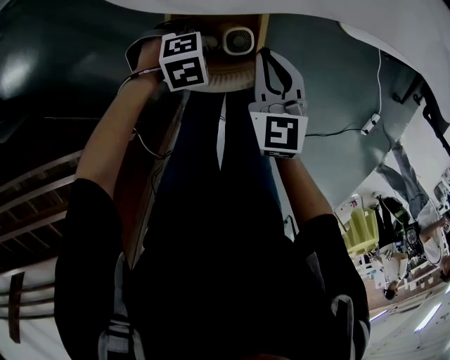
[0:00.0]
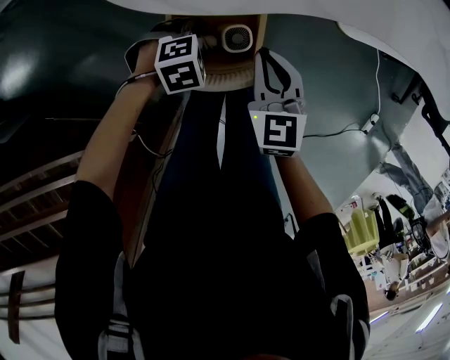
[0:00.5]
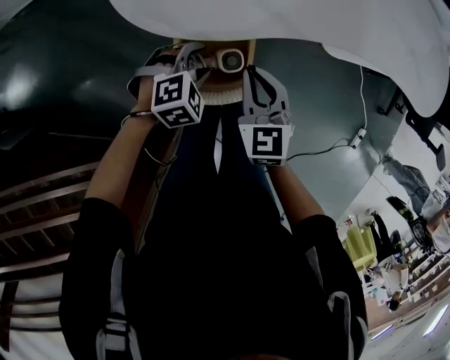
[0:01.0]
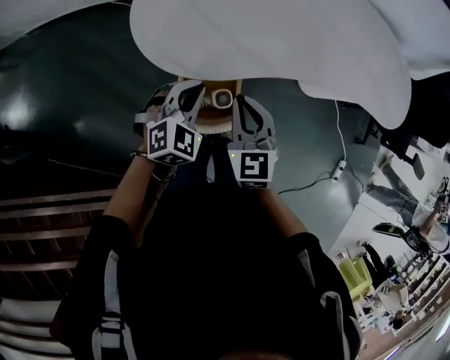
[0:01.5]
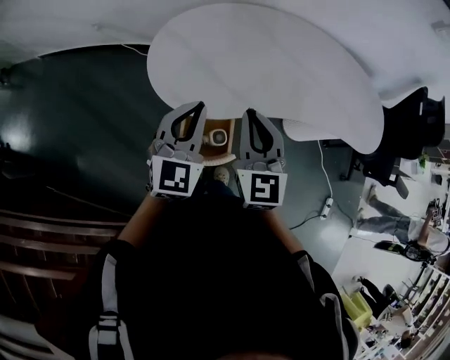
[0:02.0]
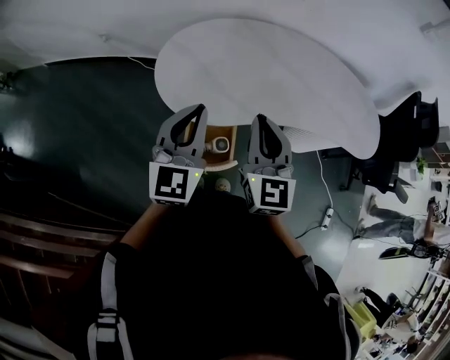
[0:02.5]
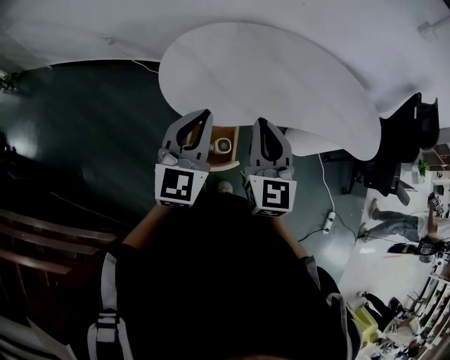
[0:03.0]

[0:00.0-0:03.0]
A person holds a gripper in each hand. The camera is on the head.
0:00.0 to 0:01.5: The left gripper goes about 25 cm upward, tips its fingers upward by approximately 40 degrees, and closes up, while the right gripper heads upward, covering roughly 15 cm.
0:01.5 to 0:03.0: The two grippers go approximately 20 cm upward. The left gripper angles its fingers upward, by roughly 30 degrees. Meanwhile the right gripper turns by approximately 20 degrees.

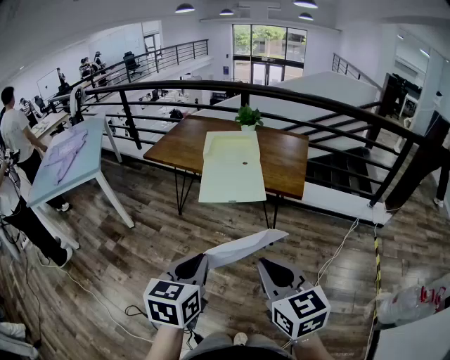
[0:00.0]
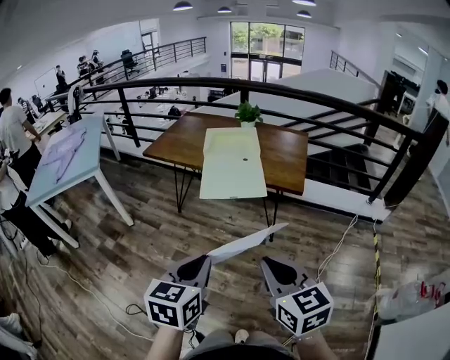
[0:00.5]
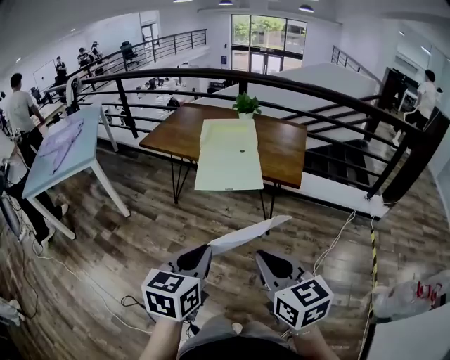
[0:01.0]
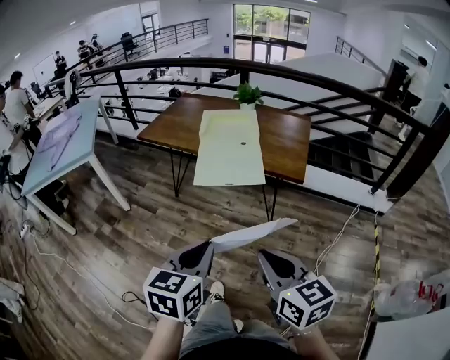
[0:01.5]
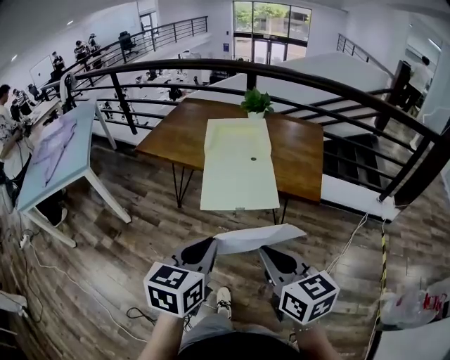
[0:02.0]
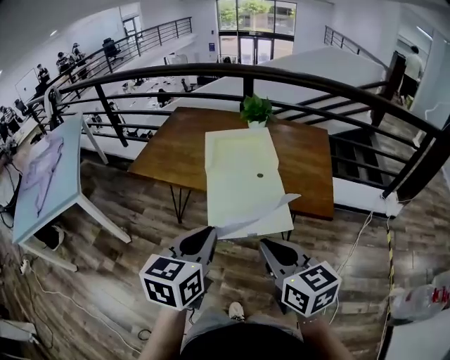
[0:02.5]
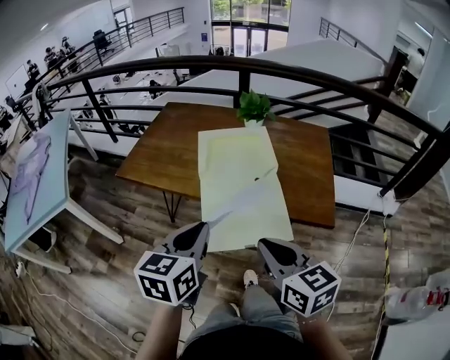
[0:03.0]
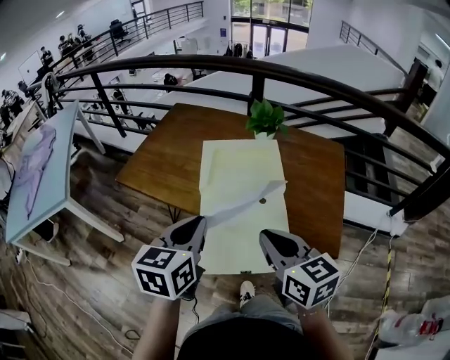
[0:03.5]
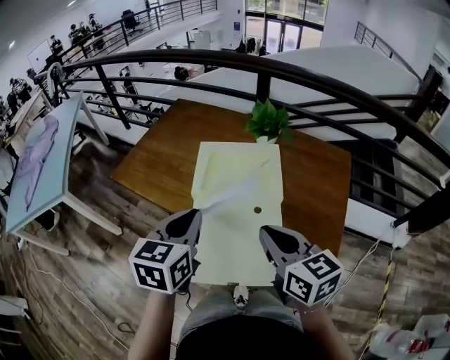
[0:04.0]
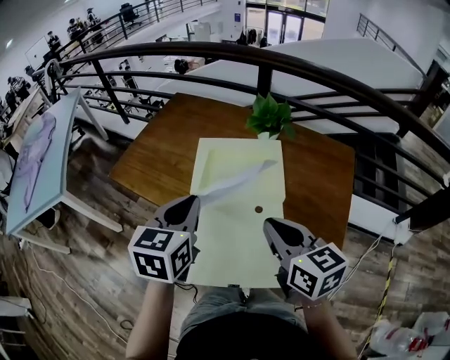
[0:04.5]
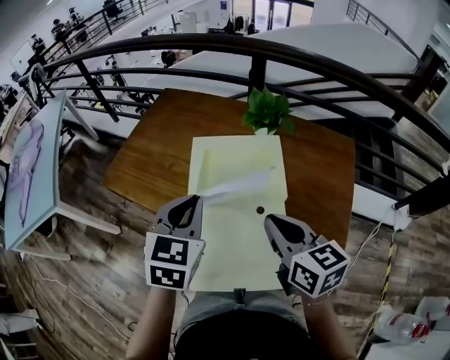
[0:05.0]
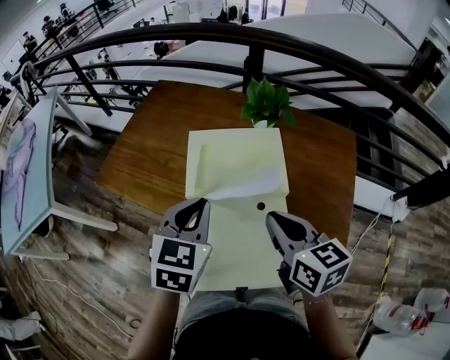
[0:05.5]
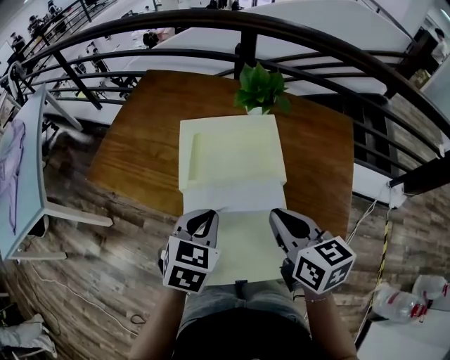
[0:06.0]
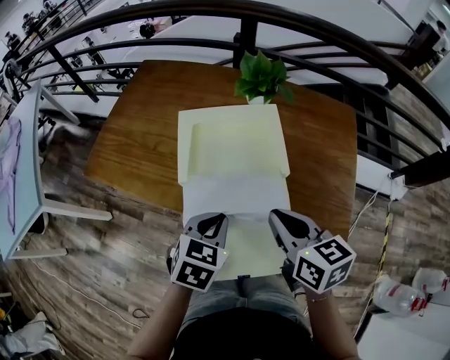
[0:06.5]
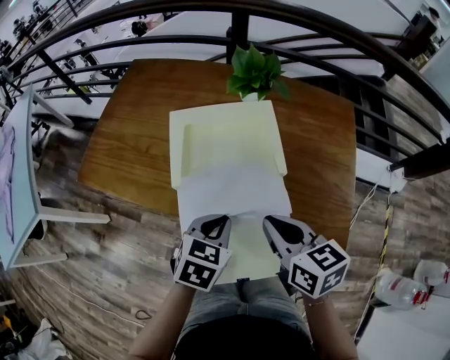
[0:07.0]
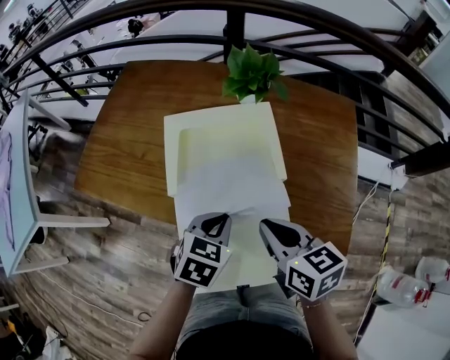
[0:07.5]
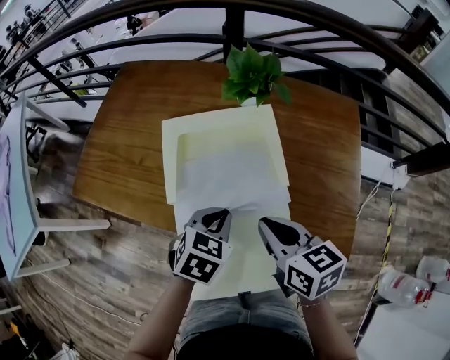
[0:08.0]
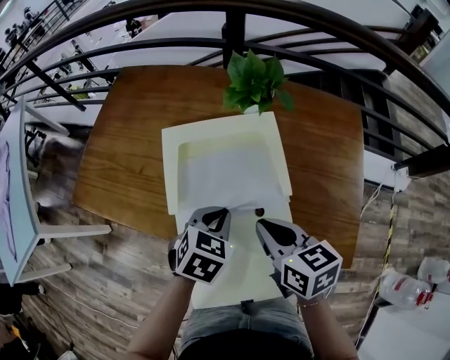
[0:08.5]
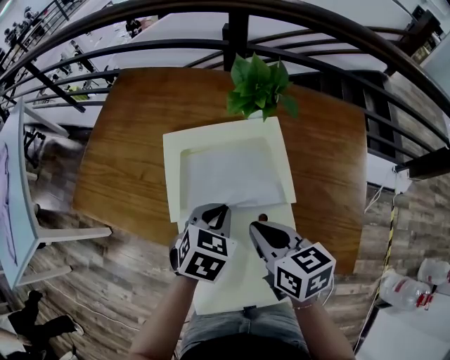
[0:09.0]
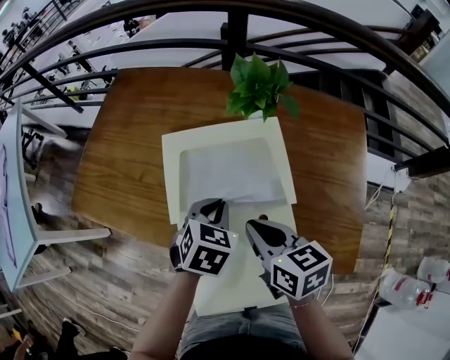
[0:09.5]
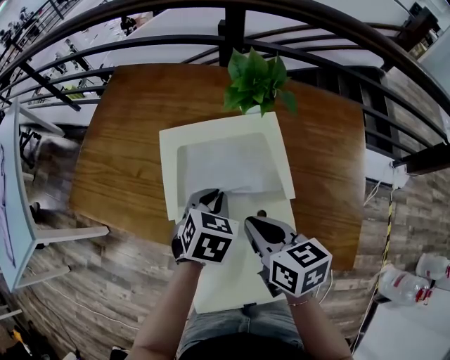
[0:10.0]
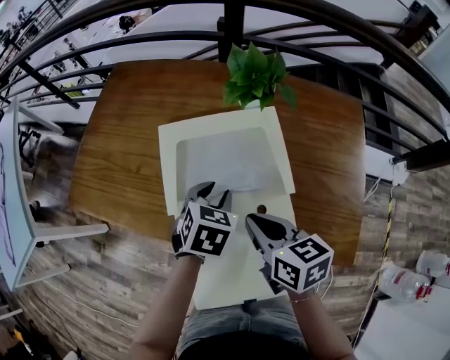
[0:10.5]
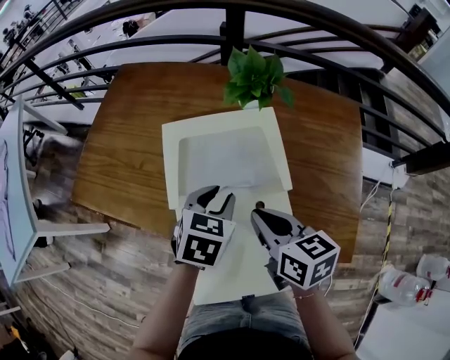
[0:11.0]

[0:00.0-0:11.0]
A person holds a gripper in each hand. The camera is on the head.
0:00.0 to 0:02.0: The two grippers go some 15 cm forward.
0:02.0 to 0:03.5: Both grippers travel together forward, some 30 cm.
0:03.5 to 0:05.5: Both grippers move forward, about 10 cm. The left gripper turns by roughly 20 degrees.
0:05.5 to 0:07.5: The right gripper travels downward by roughly 5 cm. Meanwhile the left gripper is displaced downward and to the right by about 15 cm, and rotates approximately 30 degrees.
0:07.5 to 0:09.0: The two grippers go about 5 cm forward.
0:09.0 to 0:11.0: The left gripper opens.

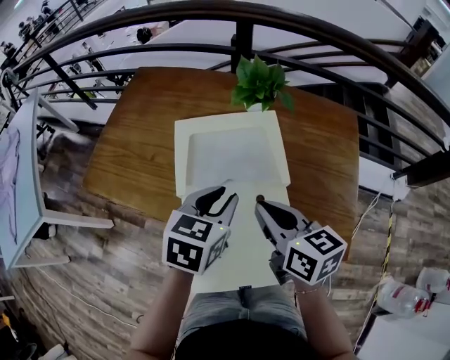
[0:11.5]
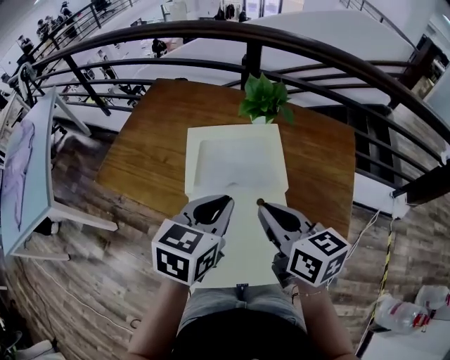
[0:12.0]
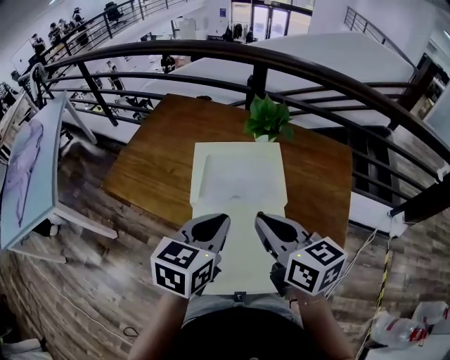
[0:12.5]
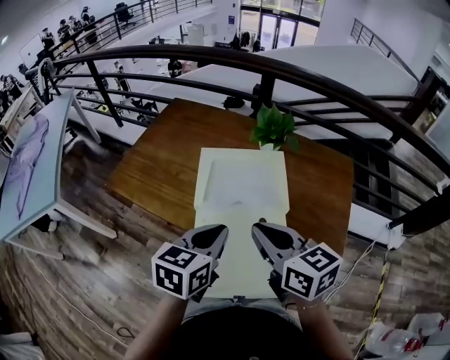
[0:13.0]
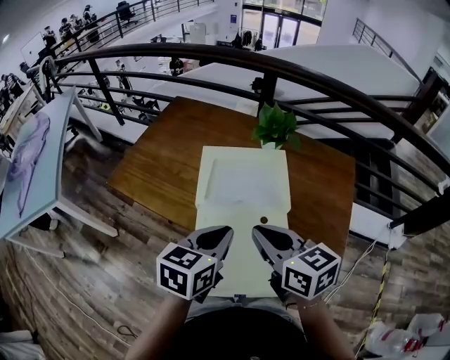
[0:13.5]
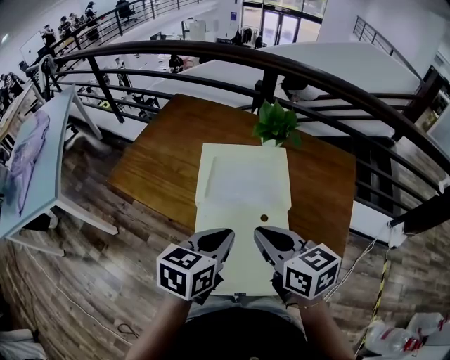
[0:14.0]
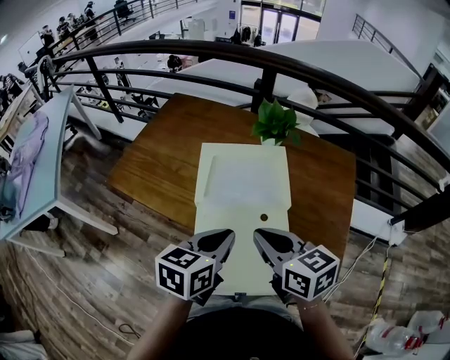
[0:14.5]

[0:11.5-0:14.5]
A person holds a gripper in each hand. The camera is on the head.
0:11.5 to 0:13.0: The left gripper heads backward and upward, covering roughly 10 cm, and closes its fingers, while the right gripper travels upward and backward by some 10 cm.
0:13.0 to 0:14.5: The grippers stay close to where they were, moving slightly.

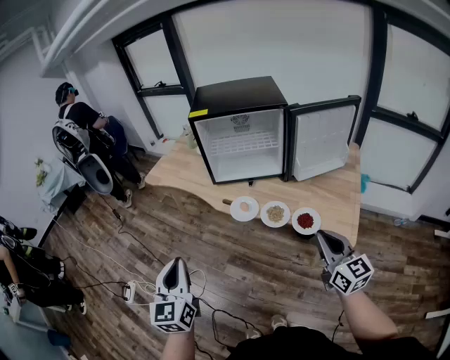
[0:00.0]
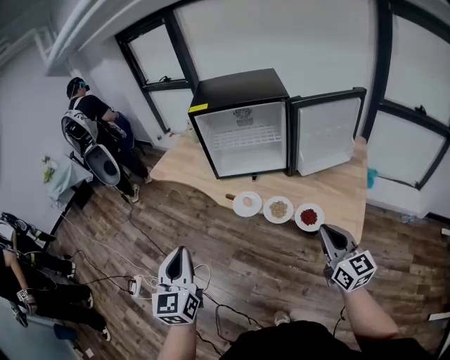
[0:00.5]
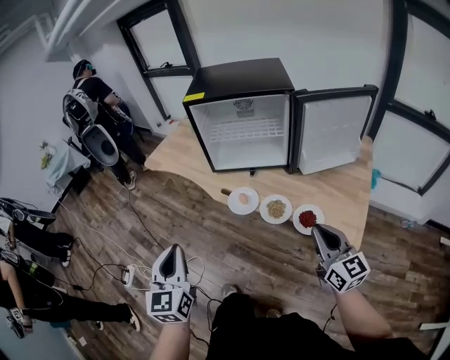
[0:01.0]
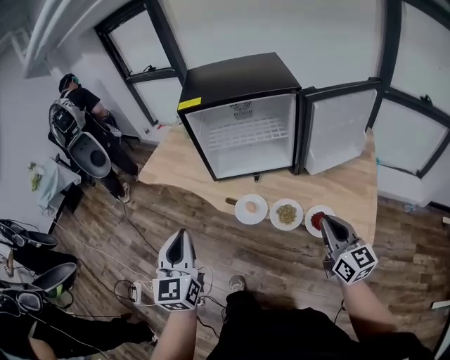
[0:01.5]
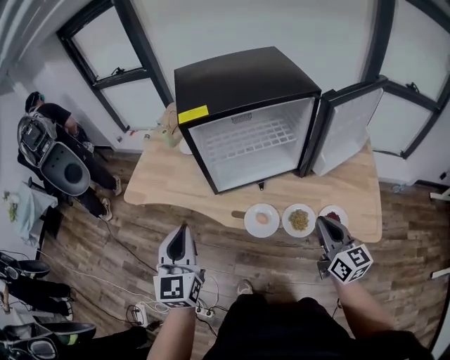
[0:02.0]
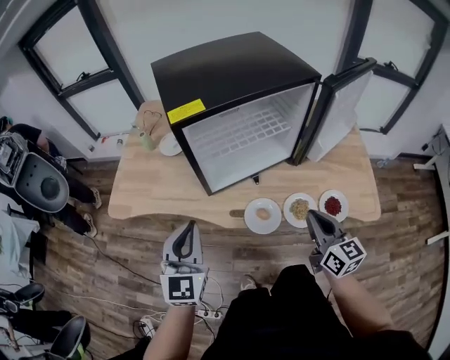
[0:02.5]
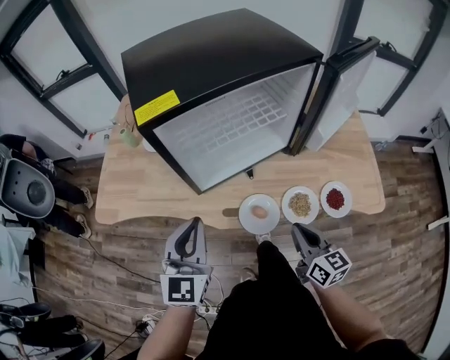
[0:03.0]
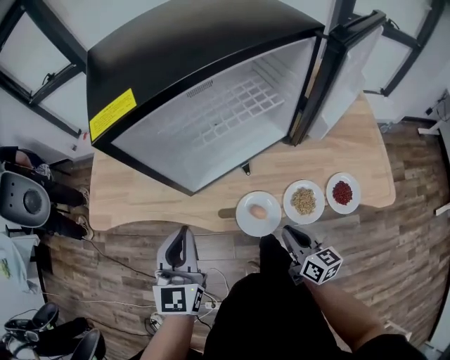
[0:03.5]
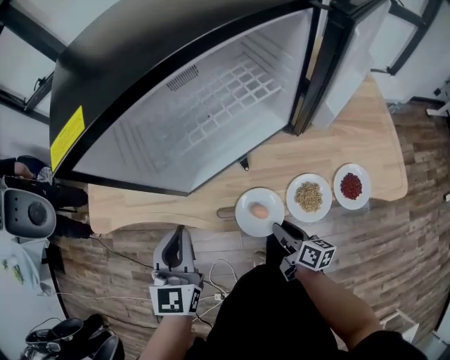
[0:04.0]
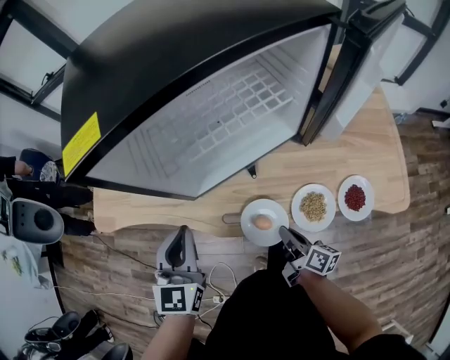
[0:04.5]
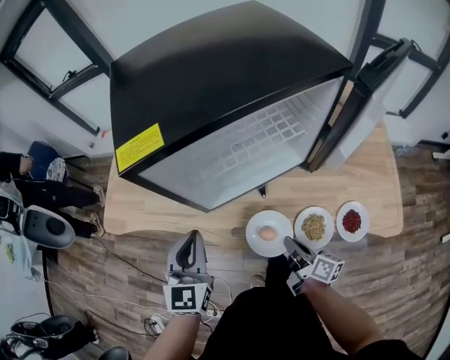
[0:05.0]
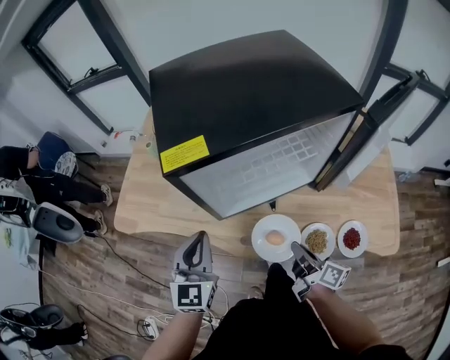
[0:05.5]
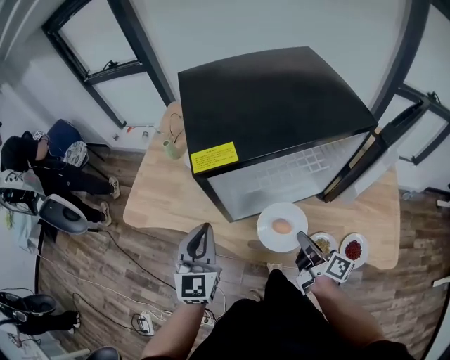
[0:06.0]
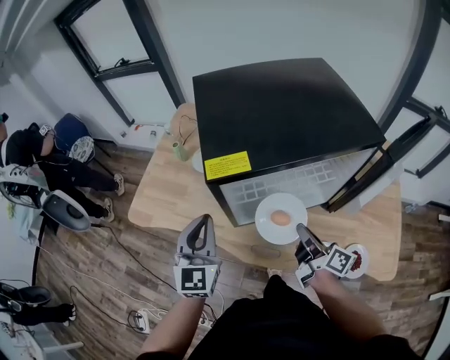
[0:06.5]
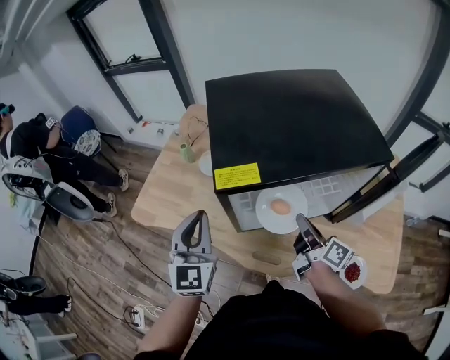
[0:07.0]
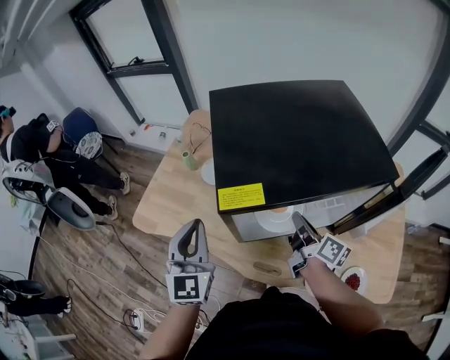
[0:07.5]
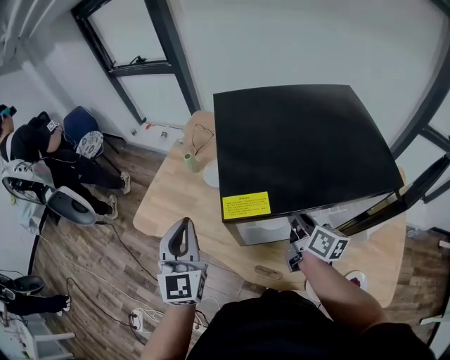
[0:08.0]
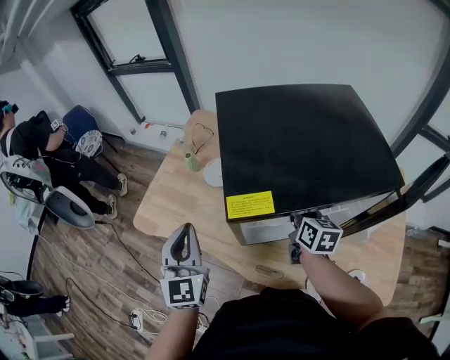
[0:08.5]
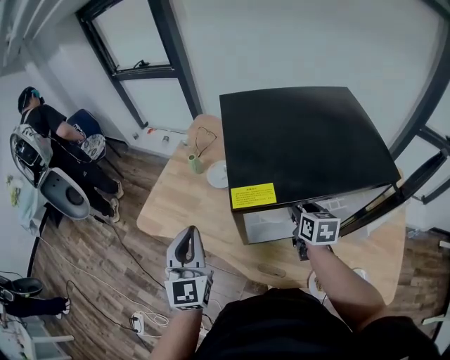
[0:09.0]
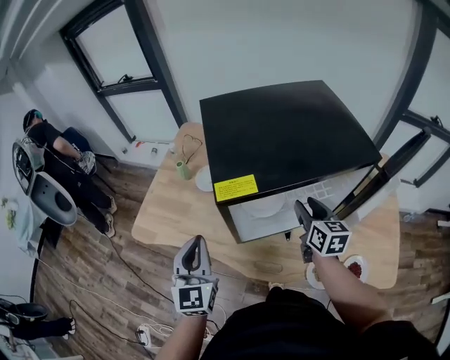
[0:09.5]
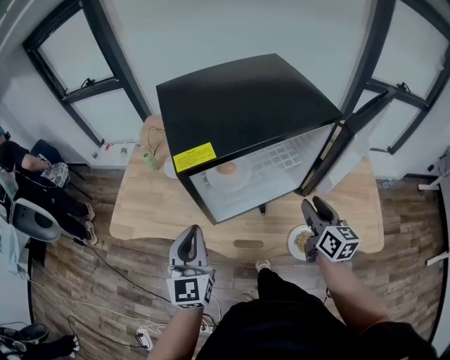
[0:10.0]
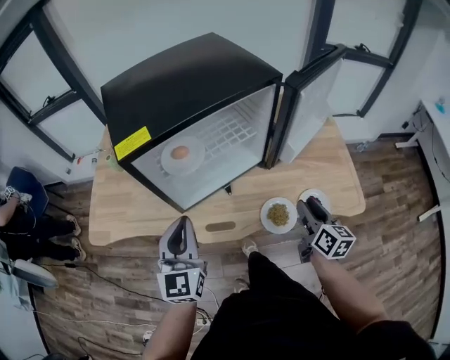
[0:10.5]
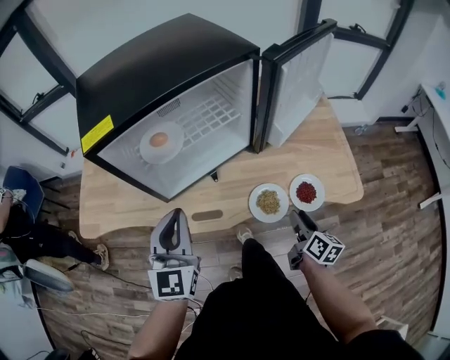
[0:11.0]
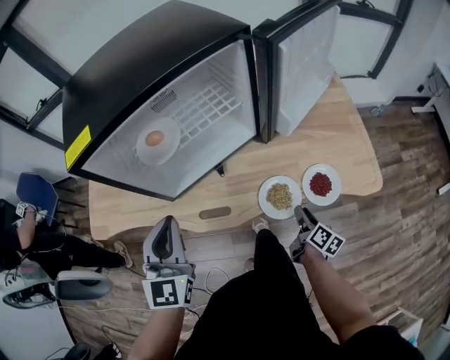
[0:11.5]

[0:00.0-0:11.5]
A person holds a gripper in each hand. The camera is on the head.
0:00.0 to 0:02.0: The left gripper heads forward, covering some 35 cm. Meanwhile the right gripper heads forward, covering approximately 20 cm.
0:02.0 to 0:04.0: The left gripper is displaced downward and forward by approximately 20 cm, and turns by some 20 degrees. The right gripper shifts about 30 cm downward, twists about 50 degrees clockwise, seen from behind, and opens up.
0:04.0 to 0:06.0: The left gripper moves upward and to the left, roughly 10 cm; the right gripper is displaced upward and forward by about 25 cm, and closes up.
0:06.0 to 0:07.5: The right gripper travels forward by approximately 15 cm. The left gripper travels upward and forward by some 10 cm.
0:07.5 to 0:09.5: The left gripper moves roughly 5 cm. Meanwhile the right gripper turns by approximately 40 degrees, and opens.
0:09.5 to 0:11.5: The left gripper heads to the right, covering about 15 cm, and changes its angle by about 20 degrees; the right gripper is displaced downward, backward and to the right by roughly 40 cm, and twists some 50 degrees clockwise, seen from behind.
